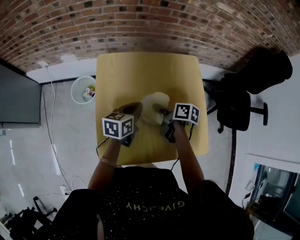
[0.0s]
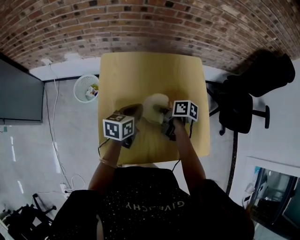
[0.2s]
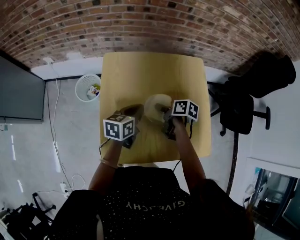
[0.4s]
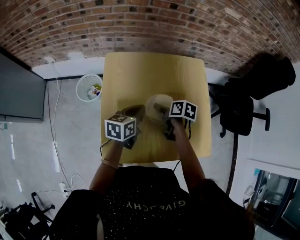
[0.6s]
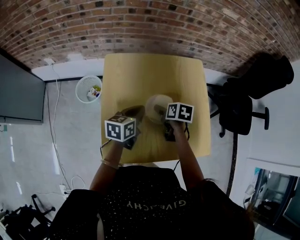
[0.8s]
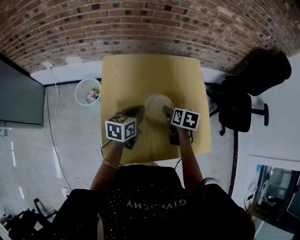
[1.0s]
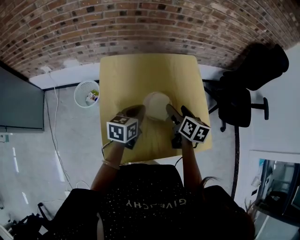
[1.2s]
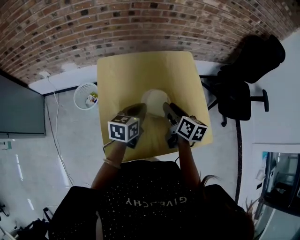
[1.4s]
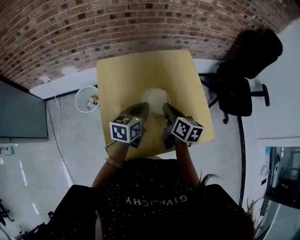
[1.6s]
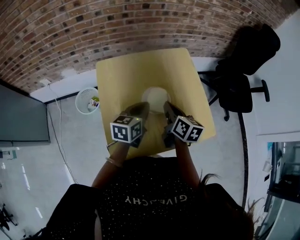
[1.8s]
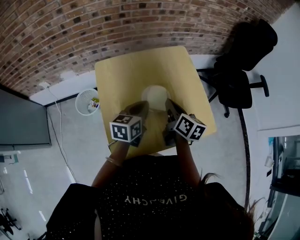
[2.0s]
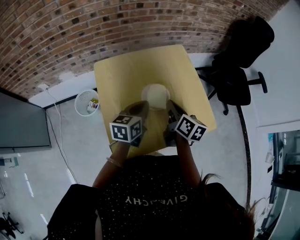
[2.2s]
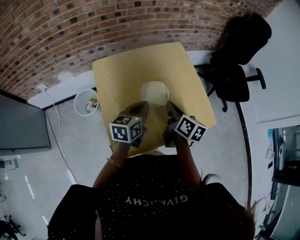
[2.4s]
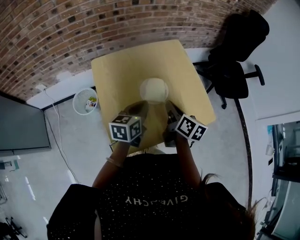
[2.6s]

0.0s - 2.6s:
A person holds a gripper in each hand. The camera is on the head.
0.0s - 1.2s: The right gripper moves to the right and upward, some 10 cm, turns by some 30 degrees, and opens up.
1.2s - 2.6s: The left gripper goes about 5 cm backward; the right gripper moves backward, about 10 cm, changes its angle by about 20 degrees, and closes.

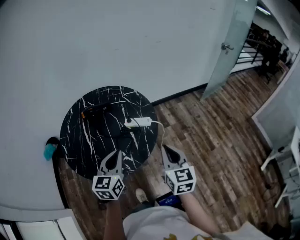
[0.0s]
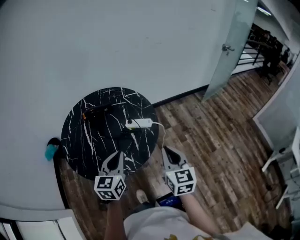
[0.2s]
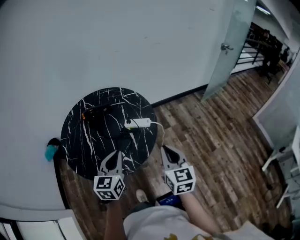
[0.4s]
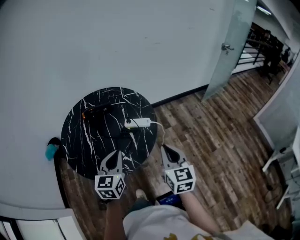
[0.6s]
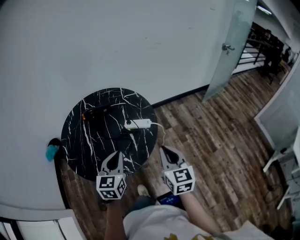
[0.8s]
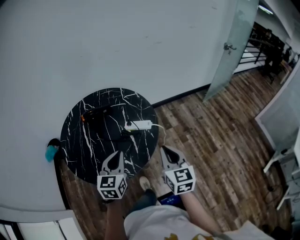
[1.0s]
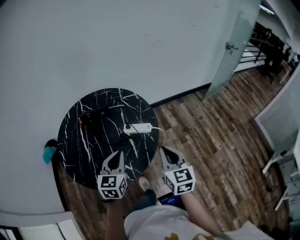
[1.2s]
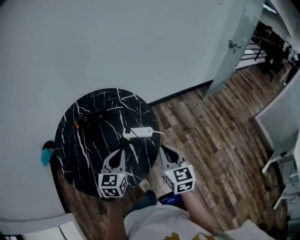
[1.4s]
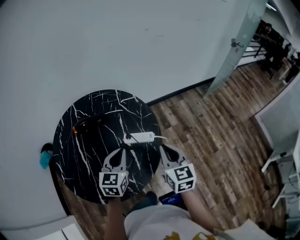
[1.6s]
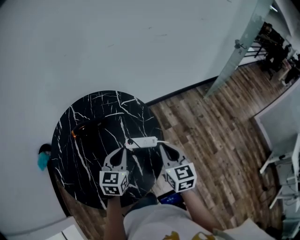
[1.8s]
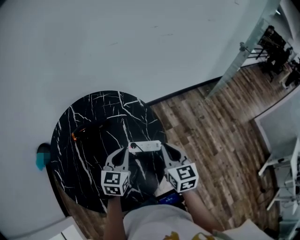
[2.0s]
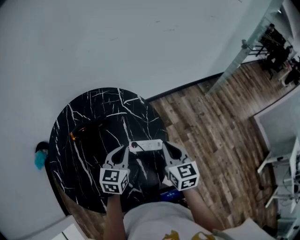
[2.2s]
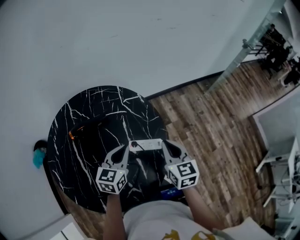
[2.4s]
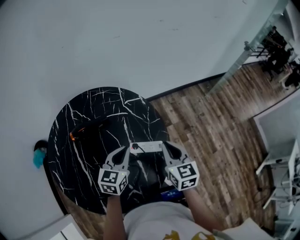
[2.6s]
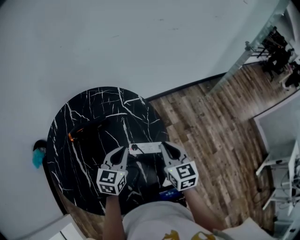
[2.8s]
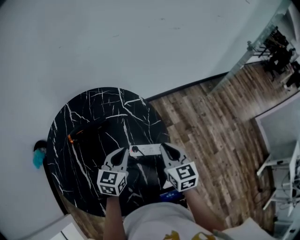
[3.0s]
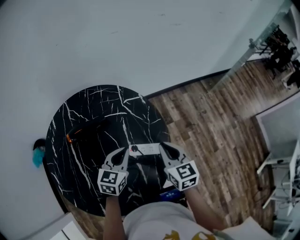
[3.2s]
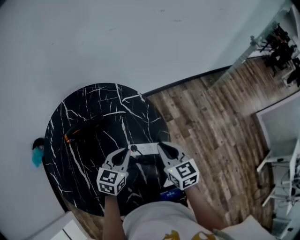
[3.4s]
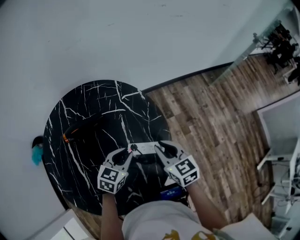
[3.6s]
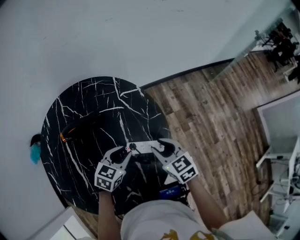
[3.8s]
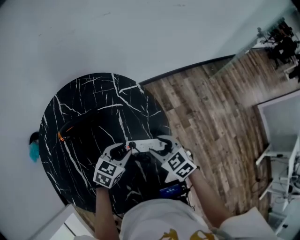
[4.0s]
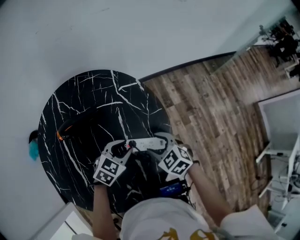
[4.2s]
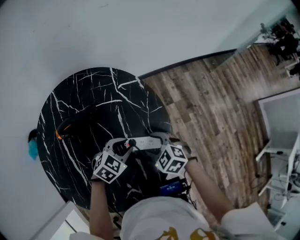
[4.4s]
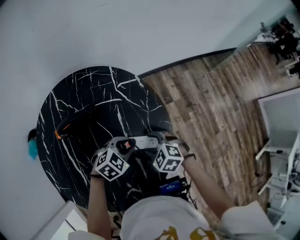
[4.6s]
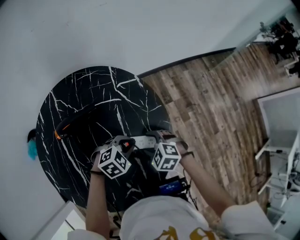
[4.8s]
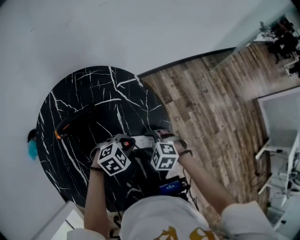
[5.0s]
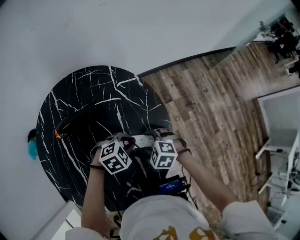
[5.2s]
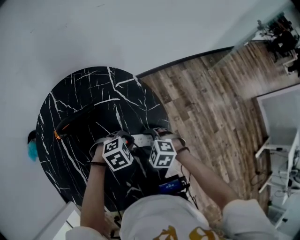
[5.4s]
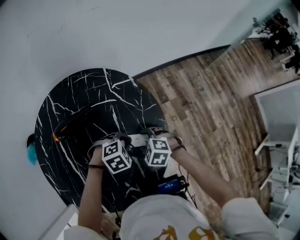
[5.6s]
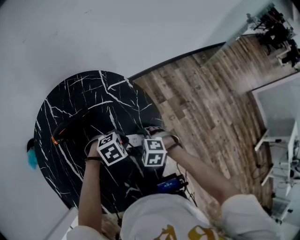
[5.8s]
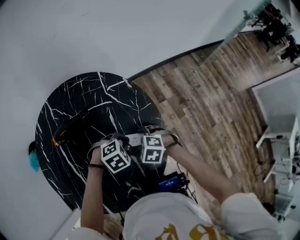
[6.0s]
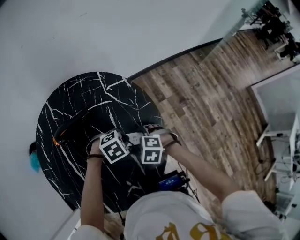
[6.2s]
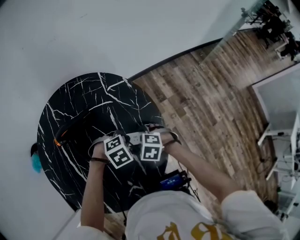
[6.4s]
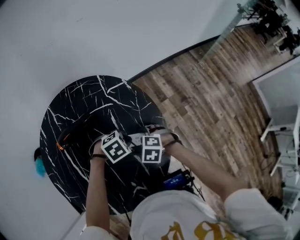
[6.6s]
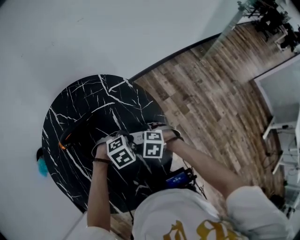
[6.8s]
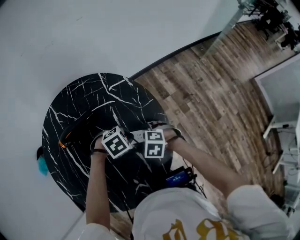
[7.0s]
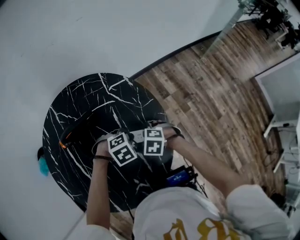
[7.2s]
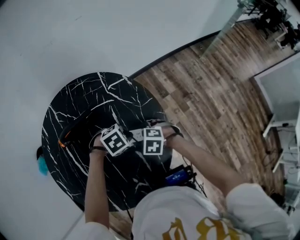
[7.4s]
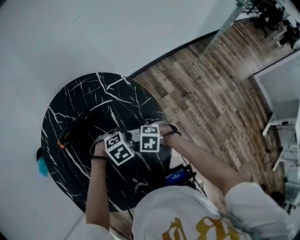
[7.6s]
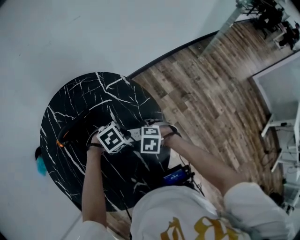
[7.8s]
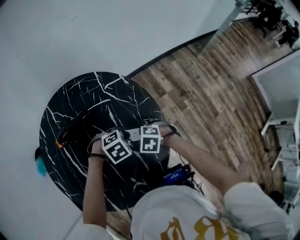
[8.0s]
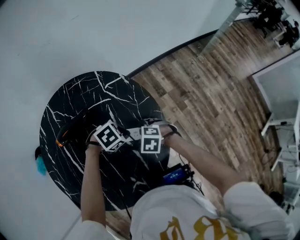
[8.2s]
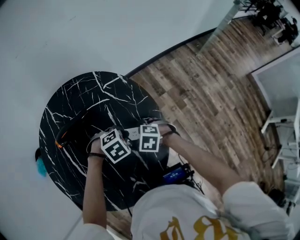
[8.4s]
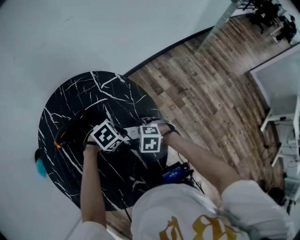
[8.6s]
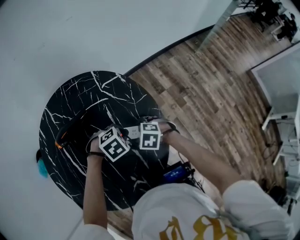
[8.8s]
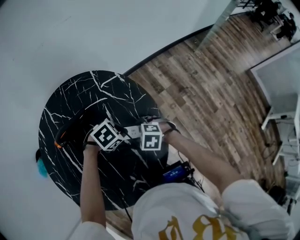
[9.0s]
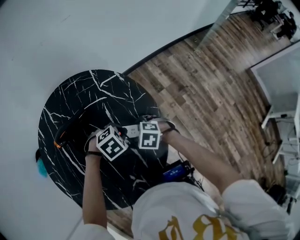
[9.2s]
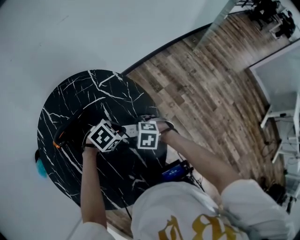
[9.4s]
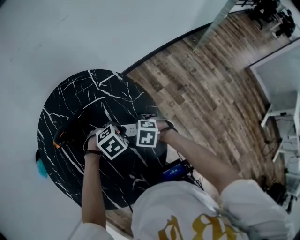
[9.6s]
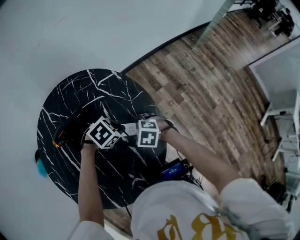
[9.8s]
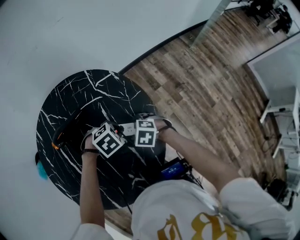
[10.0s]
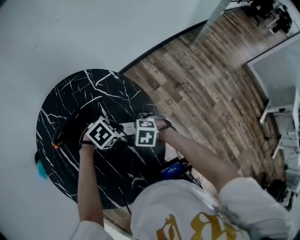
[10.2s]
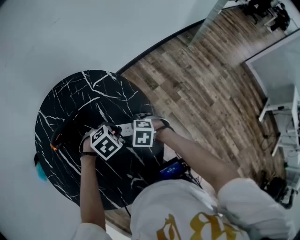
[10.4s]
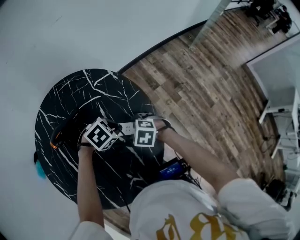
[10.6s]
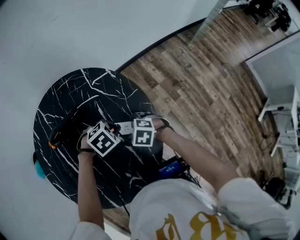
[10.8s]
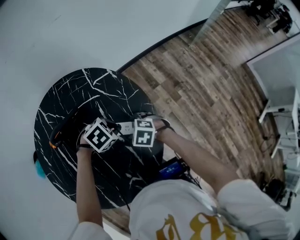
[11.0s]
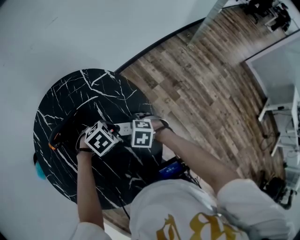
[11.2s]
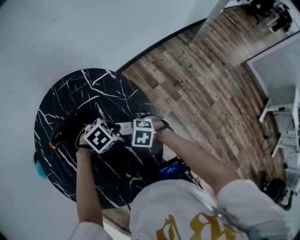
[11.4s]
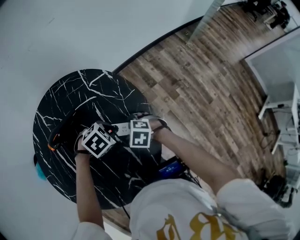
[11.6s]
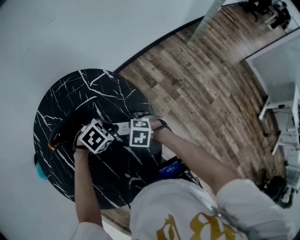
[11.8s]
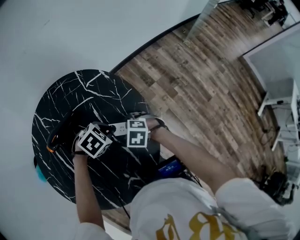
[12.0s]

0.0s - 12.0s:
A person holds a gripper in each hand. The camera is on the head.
0.0s - 1.6s: The two grippers go some 15 cm forward.
1.6s - 3.0s: The two grippers go roughly 10 cm forward and downward.
3.0s - 4.4s: The grippers both shift downward by roughly 15 cm. The right gripper turns by roughly 50 degrees, and opens up; the left gripper rotates some 40 degrees, and opens its fingers.
4.4s - 6.0s: The left gripper swivels some 30 degrees.
6.0s - 12.0s: The grippers make only small movements.

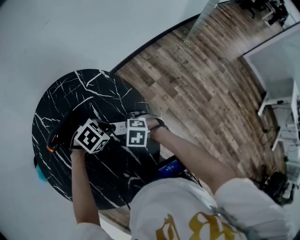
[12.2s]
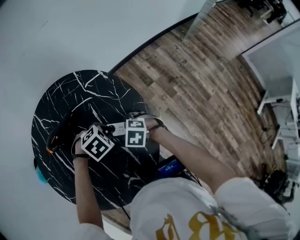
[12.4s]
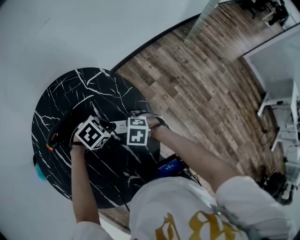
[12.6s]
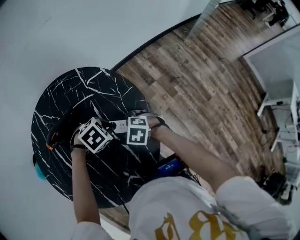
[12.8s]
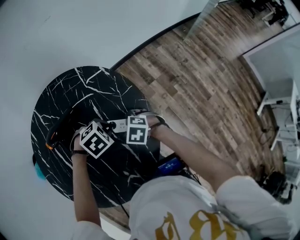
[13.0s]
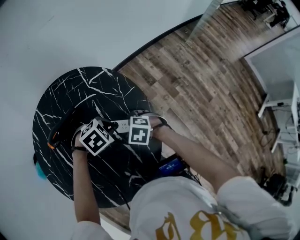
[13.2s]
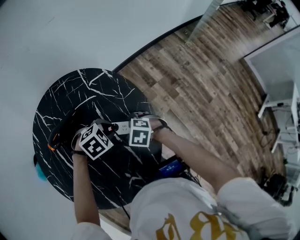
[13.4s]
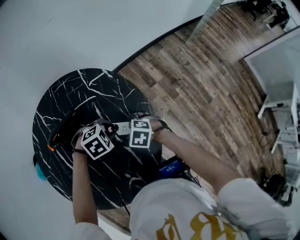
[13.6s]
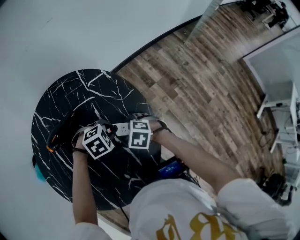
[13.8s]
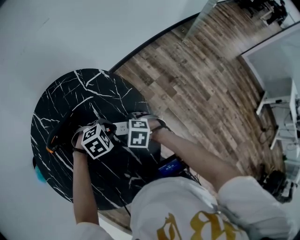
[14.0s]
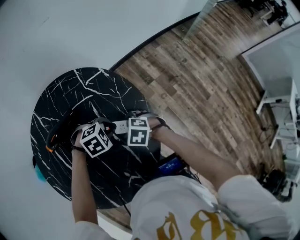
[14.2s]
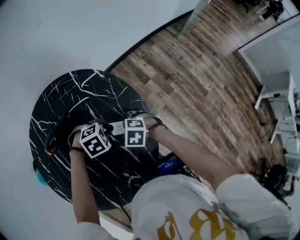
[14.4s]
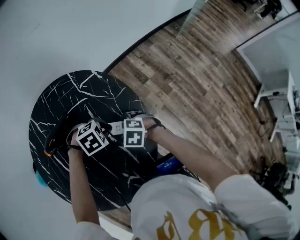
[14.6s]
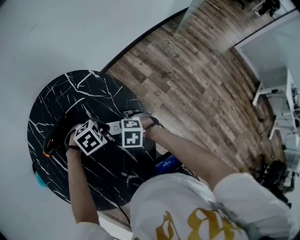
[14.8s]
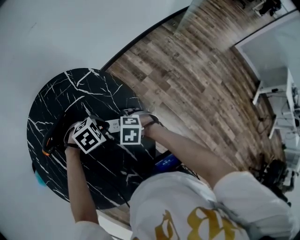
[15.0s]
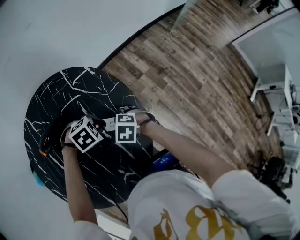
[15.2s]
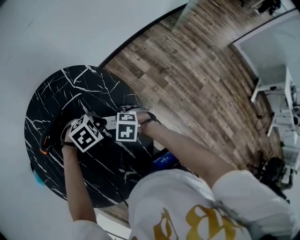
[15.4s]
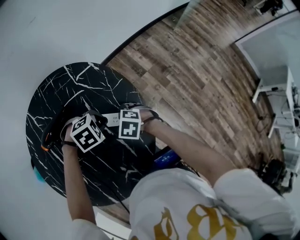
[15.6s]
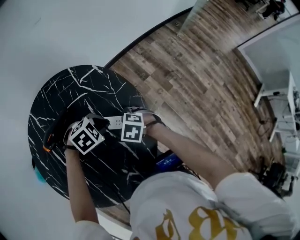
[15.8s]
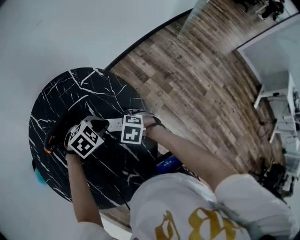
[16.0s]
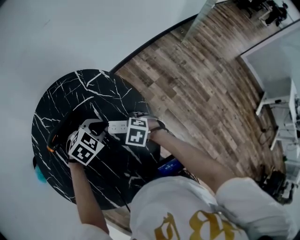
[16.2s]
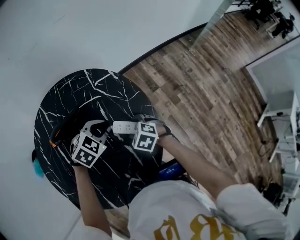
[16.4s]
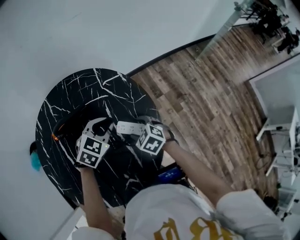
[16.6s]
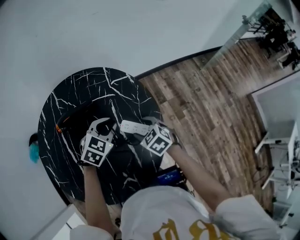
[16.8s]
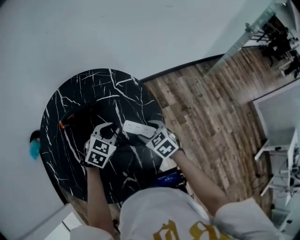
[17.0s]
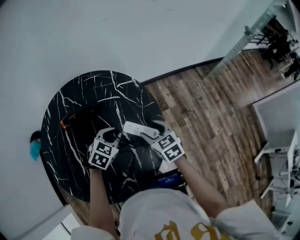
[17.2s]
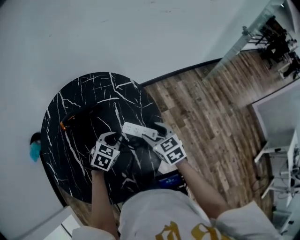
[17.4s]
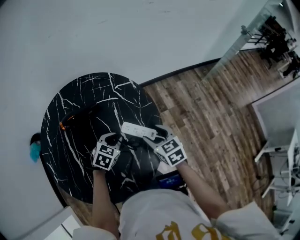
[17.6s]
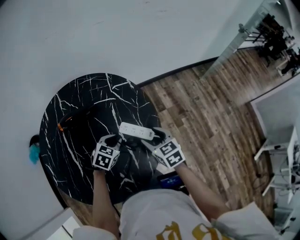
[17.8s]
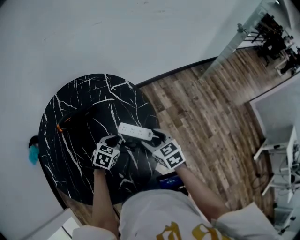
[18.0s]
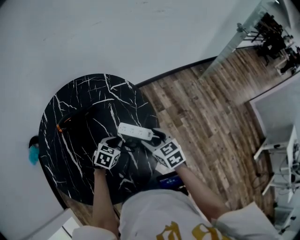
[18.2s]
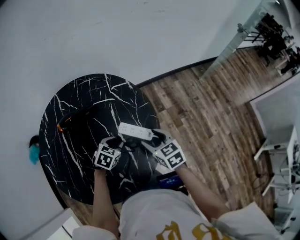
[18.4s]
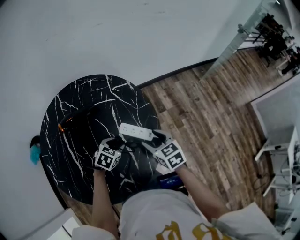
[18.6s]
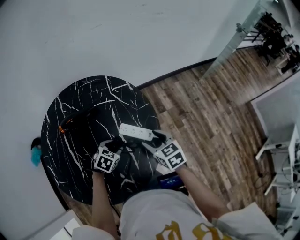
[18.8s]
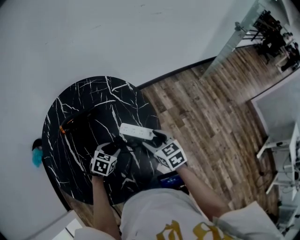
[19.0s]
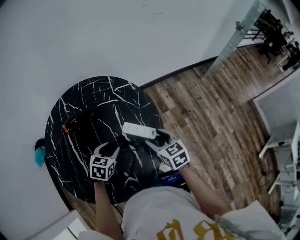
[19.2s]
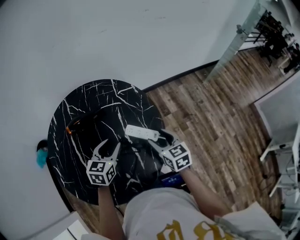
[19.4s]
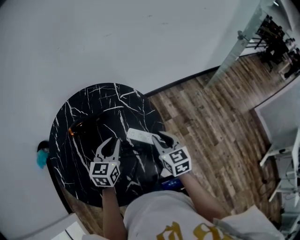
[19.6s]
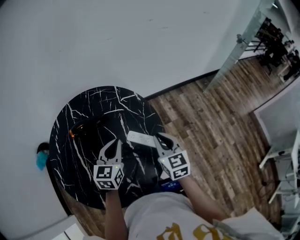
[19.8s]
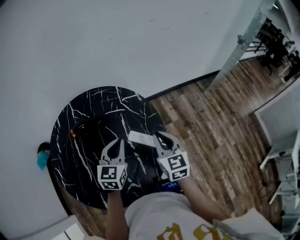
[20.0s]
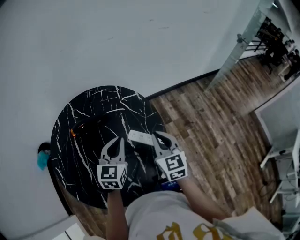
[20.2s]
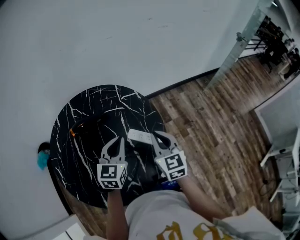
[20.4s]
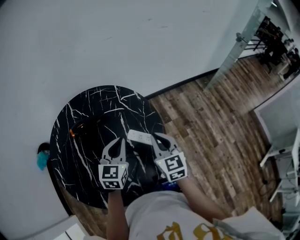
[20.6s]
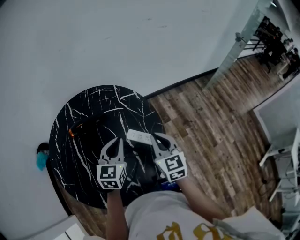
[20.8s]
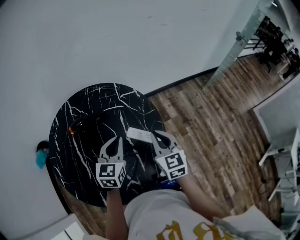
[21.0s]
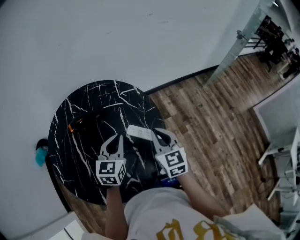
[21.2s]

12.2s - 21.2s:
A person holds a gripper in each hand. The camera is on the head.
12.2s - 13.8s: The grippers stay close to where they were, moving slightly.
13.8s - 15.2s: The grippers move only a little.
15.2s - 16.6s: The left gripper moves upward, about 10 cm, and rotates some 50 degrees.
16.6s - 18.2s: The left gripper shifts about 15 cm downward and backward, and changes its angle by approximately 20 degrees. The right gripper goes approximately 10 cm upward and to the right, and rotates some 30 degrees.
18.2s - 19.8s: The right gripper is displaced upward by some 10 cm, turns by approximately 20 degrees, and closes its fingers. The left gripper travels upward by some 20 cm, tilts its fingers some 30 degrees upward, and opens, then closes again.
19.8s - 21.2s: The grippers move only a little.
